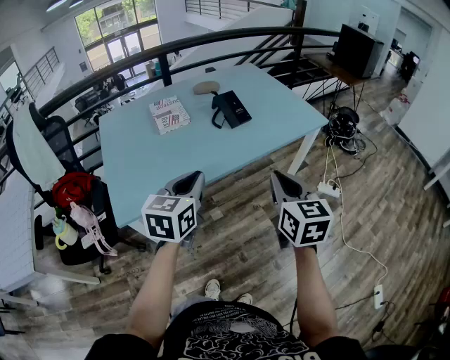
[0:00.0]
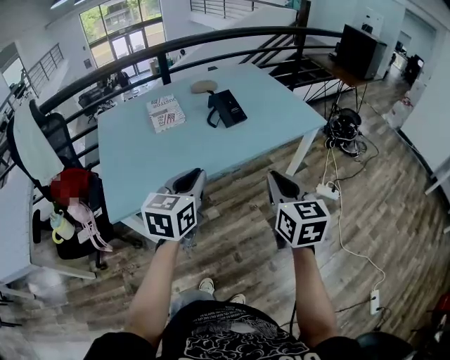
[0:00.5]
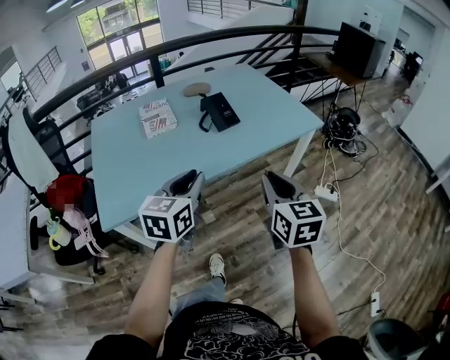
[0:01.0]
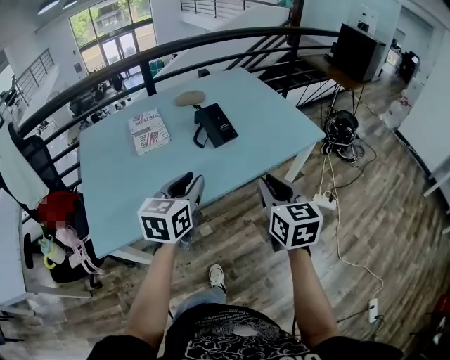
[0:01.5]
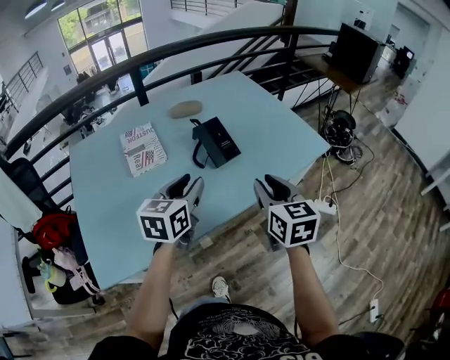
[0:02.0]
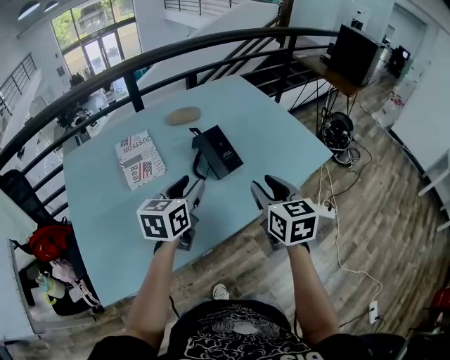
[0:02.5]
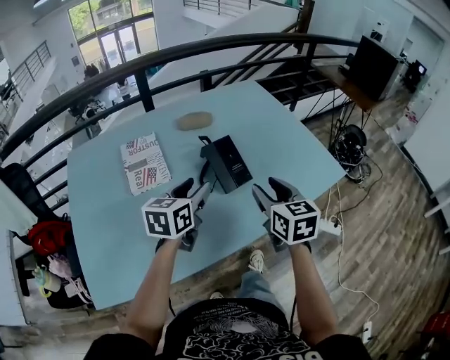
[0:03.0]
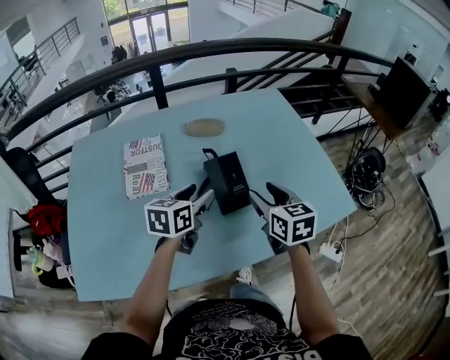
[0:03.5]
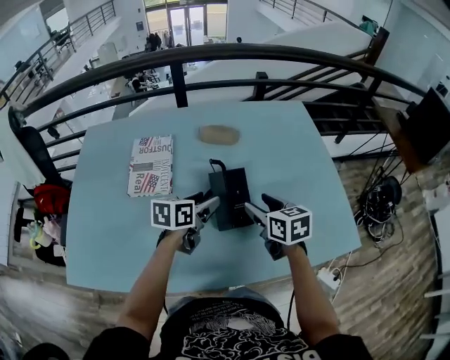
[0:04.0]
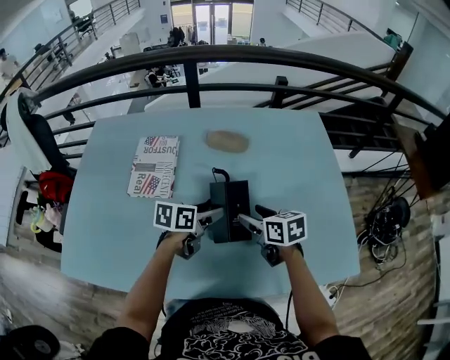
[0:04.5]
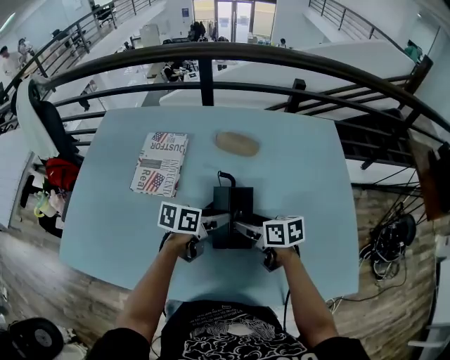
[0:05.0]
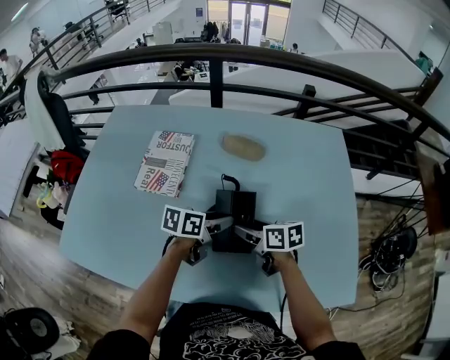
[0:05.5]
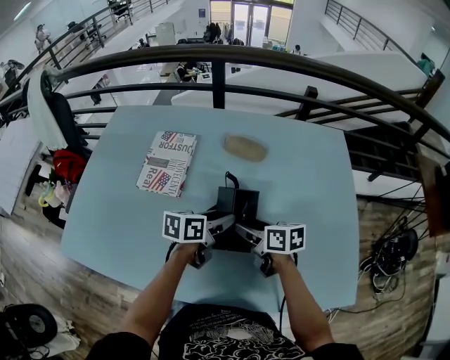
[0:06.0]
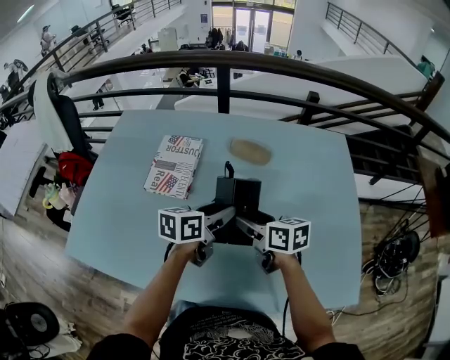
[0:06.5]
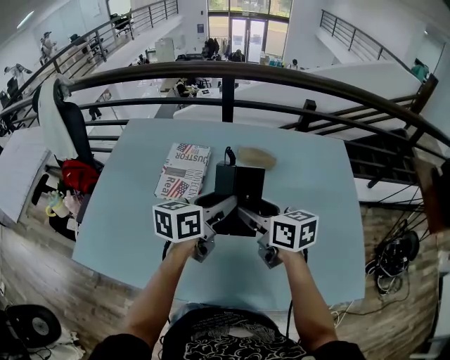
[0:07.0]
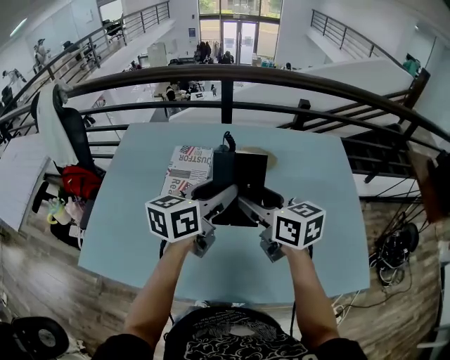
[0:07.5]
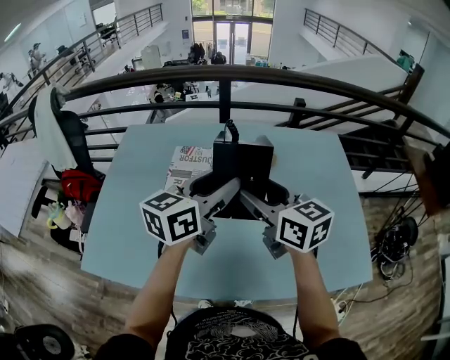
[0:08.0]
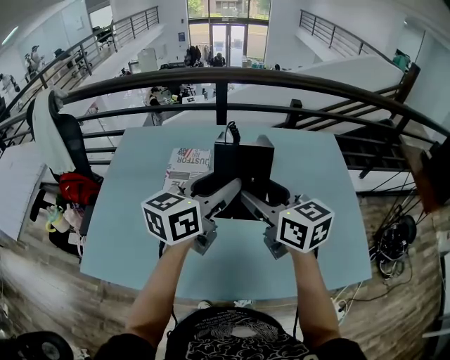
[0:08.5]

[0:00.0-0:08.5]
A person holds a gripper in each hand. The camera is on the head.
0:00.0 to 0:02.0: The grippers both shift forward by about 25 cm. The left gripper opens.
0:02.0 to 0:04.0: Both grippers move forward and downward, approximately 30 cm. The left gripper swivels about 30 degrees, and opens its fingers. Meanwhile the right gripper changes its angle by approximately 40 degrees, and opens up.
0:04.0 to 0:06.5: The right gripper moves to the left, some 5 cm, goes downward and returns, approximately 10 cm each way, and rotates roughly 30 degrees.
0:06.5 to 0:08.5: The grippers both shift upward by roughly 20 cm. The right gripper turns by approximately 30 degrees, while the left gripper rotates about 30 degrees.

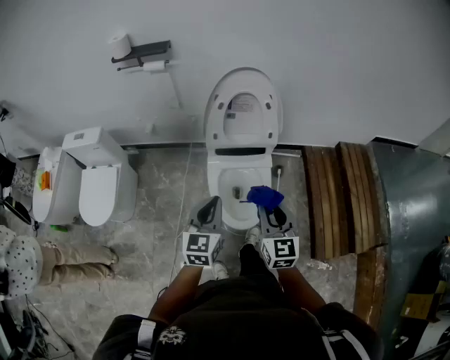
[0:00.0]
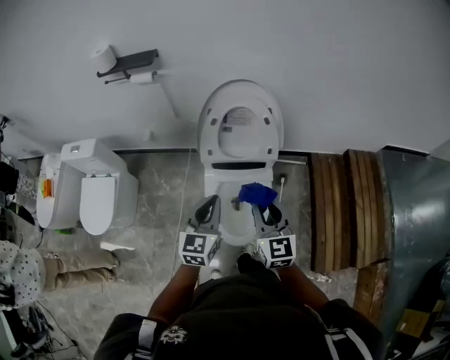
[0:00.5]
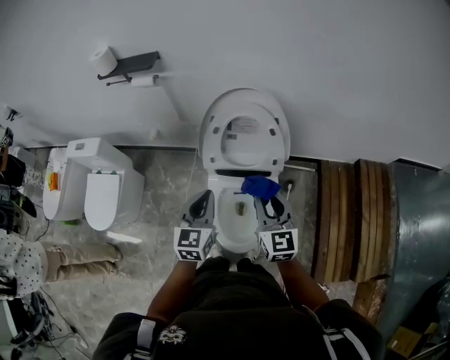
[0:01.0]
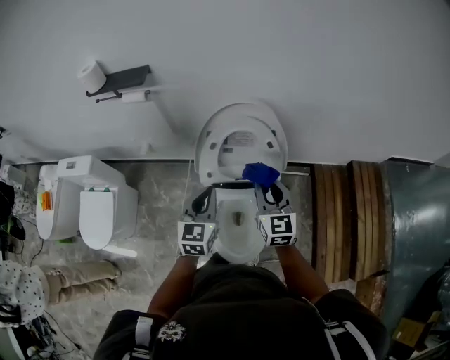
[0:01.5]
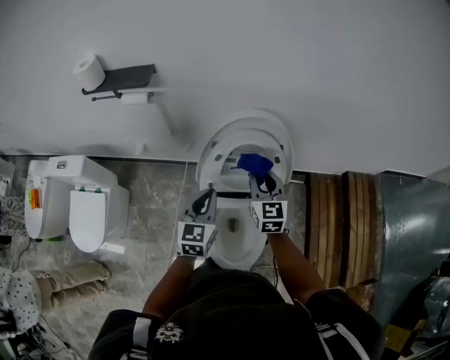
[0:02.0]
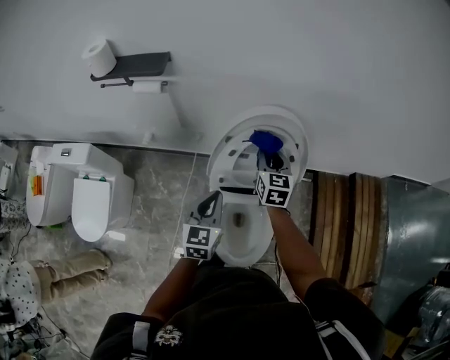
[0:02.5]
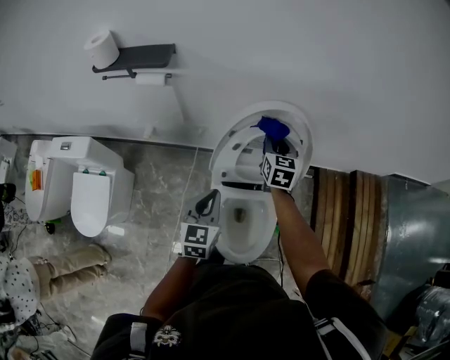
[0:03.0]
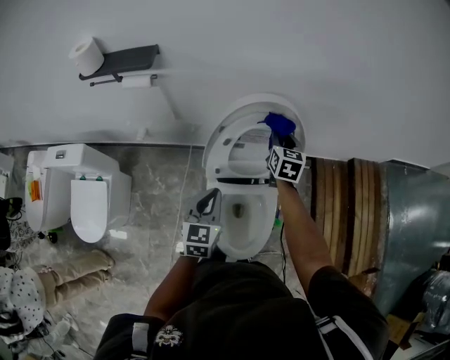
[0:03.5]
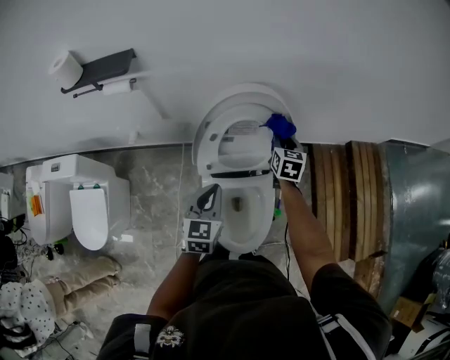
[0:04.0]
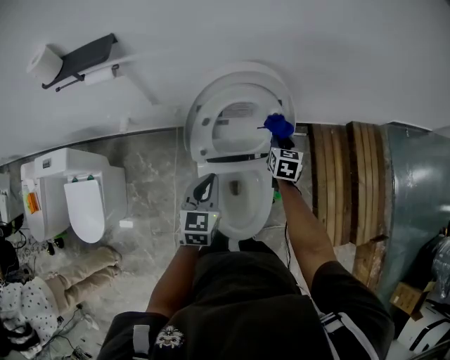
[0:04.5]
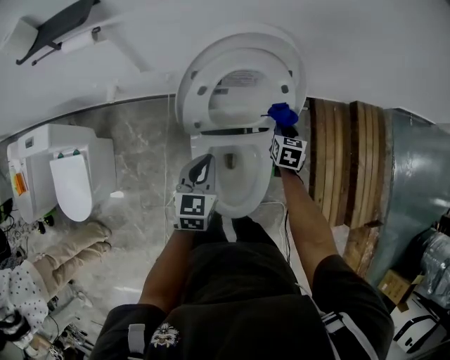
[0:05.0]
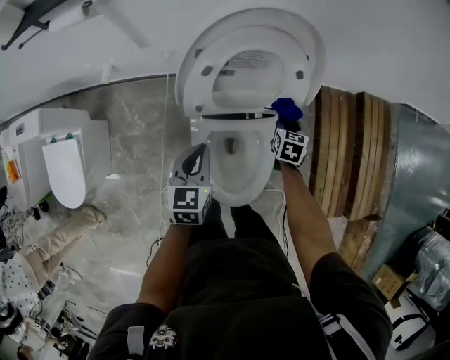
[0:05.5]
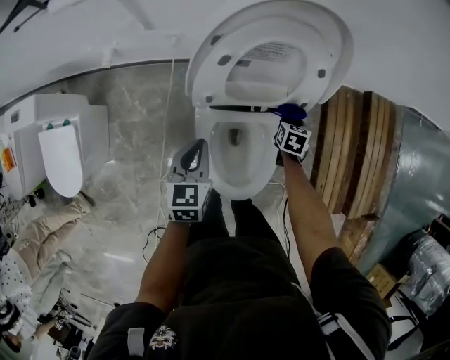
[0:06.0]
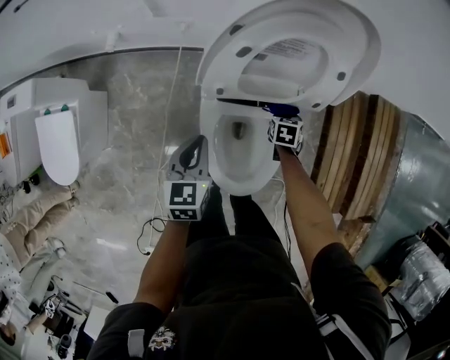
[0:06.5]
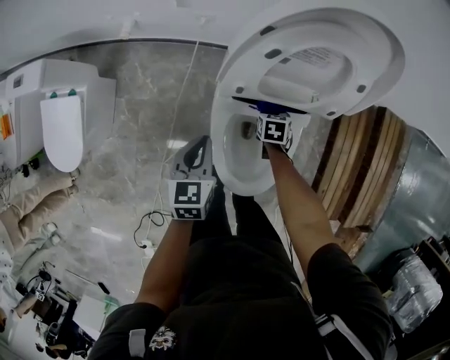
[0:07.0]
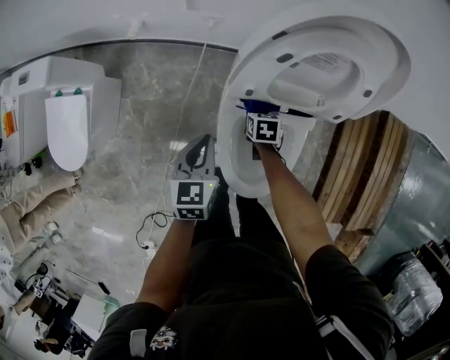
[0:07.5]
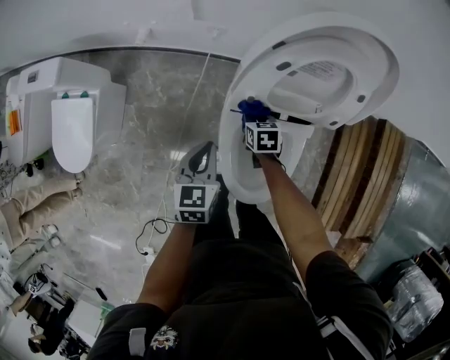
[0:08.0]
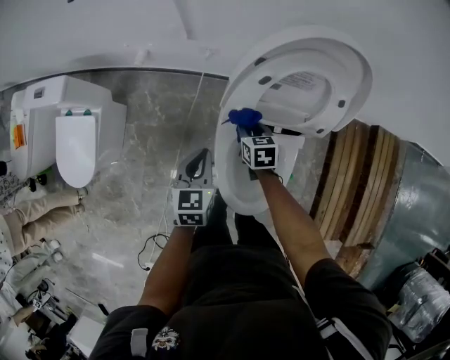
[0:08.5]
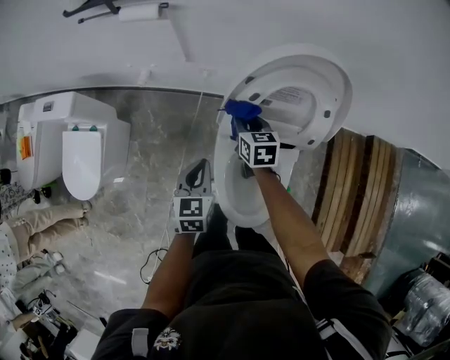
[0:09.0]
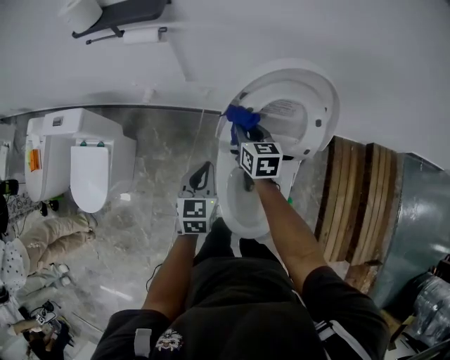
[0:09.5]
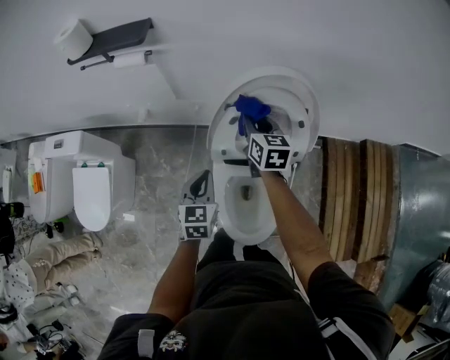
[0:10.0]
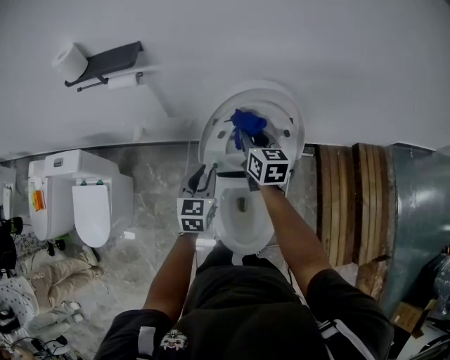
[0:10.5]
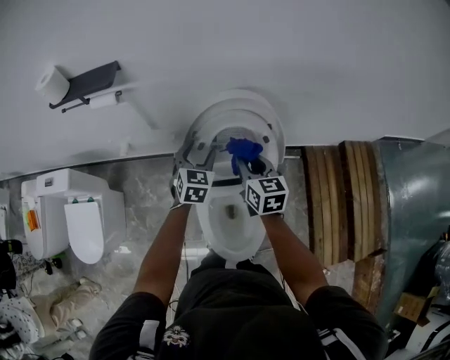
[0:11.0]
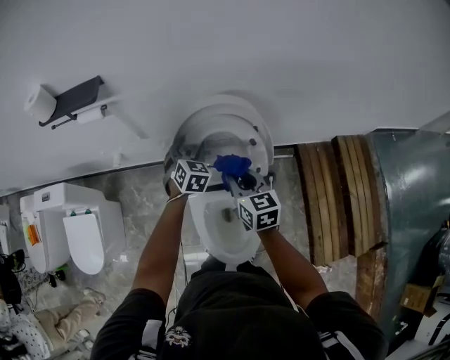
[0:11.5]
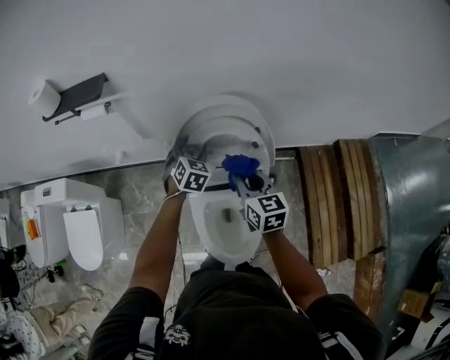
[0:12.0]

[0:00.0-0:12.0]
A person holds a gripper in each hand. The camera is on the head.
0:00.0 to 0:02.0: Both grippers travel together forward, some 35 cm.
0:02.0 to 0:04.0: The right gripper goes approximately 15 cm to the right, downward and forward, and rotates about 30 degrees; the left gripper moves approximately 5 cm.
0:04.0 to 0:06.0: The right gripper goes roughly 25 cm downward, and rotates some 30 degrees. Meanwhile the left gripper moves downward, about 15 cm.
0:06.0 to 0:08.0: The left gripper changes place by about 10 cm; the right gripper moves approximately 25 cm, and rotates roughly 30 degrees.
0:08.0 to 0:10.0: The left gripper heads upward and to the right, covering about 10 cm. Meanwhile the right gripper travels upward by roughly 30 cm, and tips its fingers upward by some 30 degrees.
0:10.0 to 0:12.0: The left gripper moves forward and to the right, some 20 cm, swivels some 30 degrees, and opens its fingers. Meanwhile the right gripper goes about 15 cm backward and to the right.

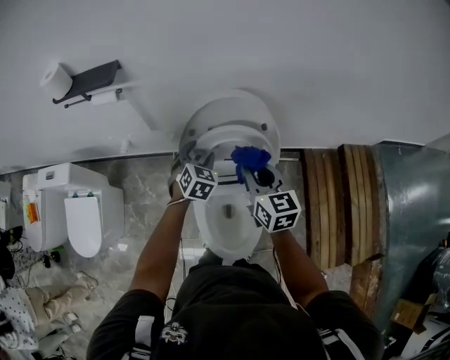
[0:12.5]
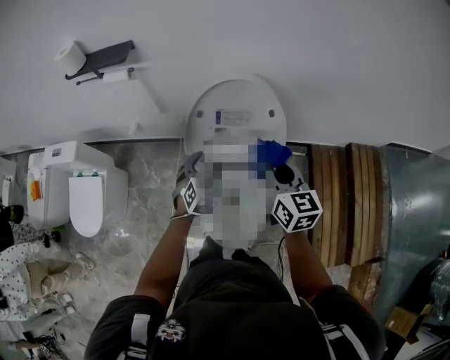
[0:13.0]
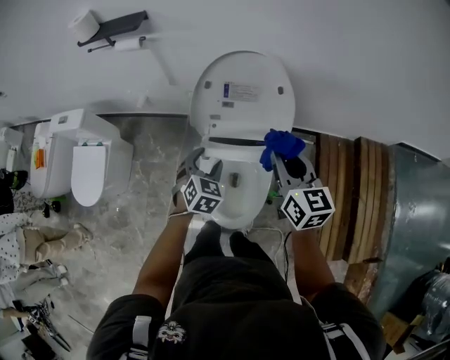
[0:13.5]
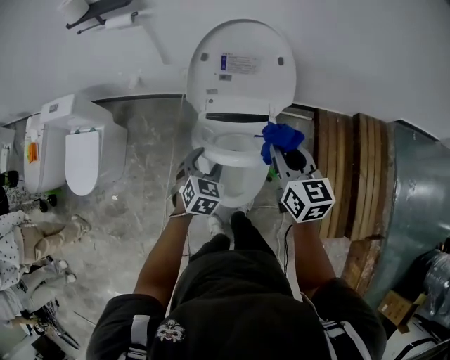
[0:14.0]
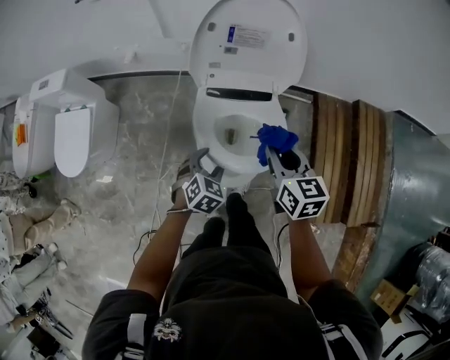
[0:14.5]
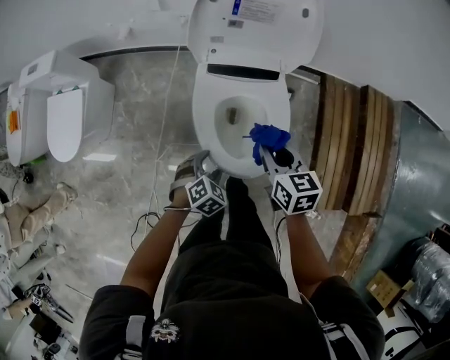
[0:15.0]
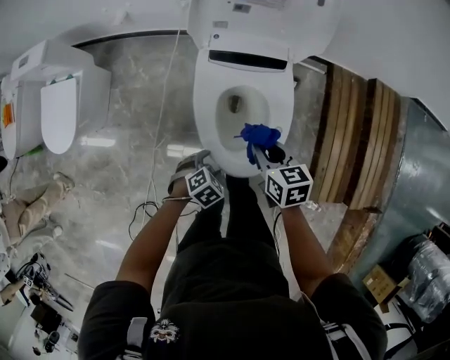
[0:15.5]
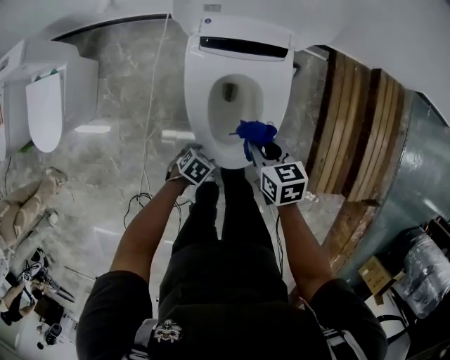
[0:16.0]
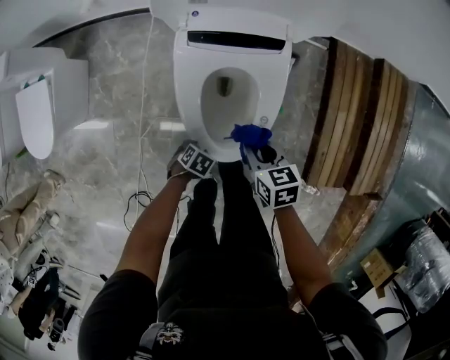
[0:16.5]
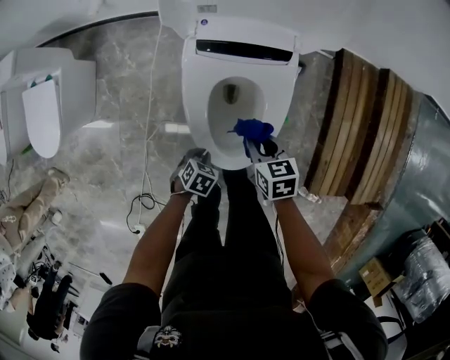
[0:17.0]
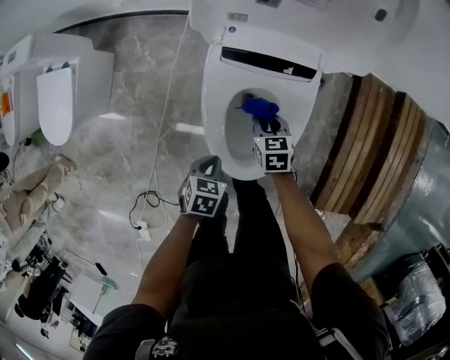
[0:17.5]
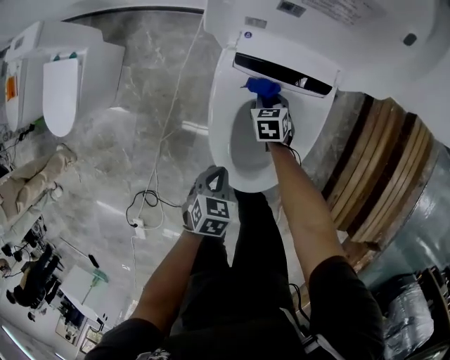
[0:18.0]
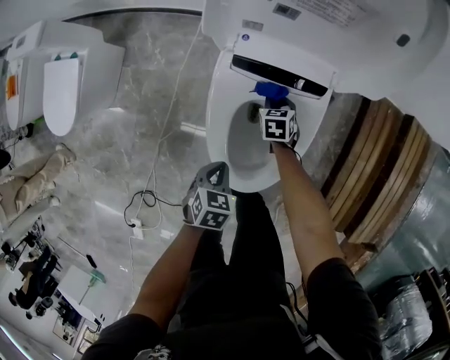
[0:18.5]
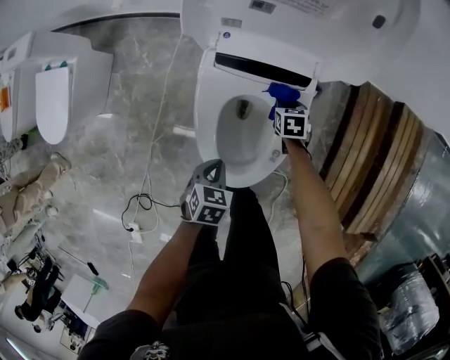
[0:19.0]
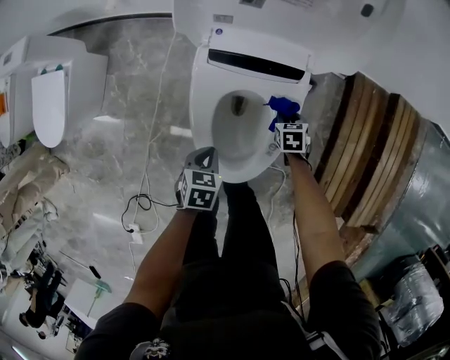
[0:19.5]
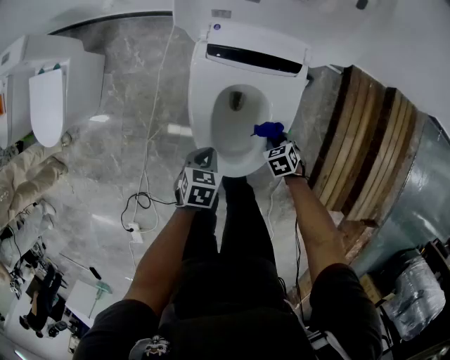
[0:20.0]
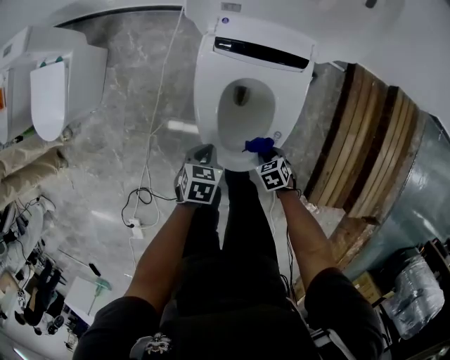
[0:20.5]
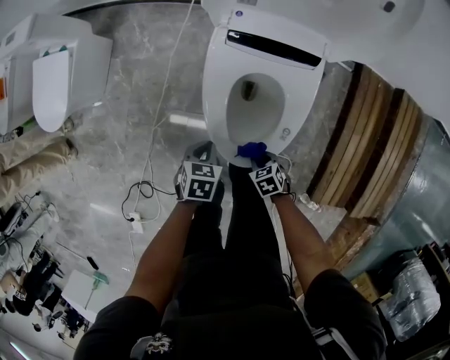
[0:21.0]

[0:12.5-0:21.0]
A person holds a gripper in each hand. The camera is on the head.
0:12.5 to 0:14.5: The right gripper travels backward by about 20 cm. Meanwhile the left gripper moves backward, some 35 cm.
0:14.5 to 0:16.5: Both grippers move downward, some 30 cm. The left gripper swivels approximately 40 degrees; the right gripper changes its angle by about 30 degrees.
0:16.5 to 0:19.0: The right gripper moves some 30 cm; the left gripper goes approximately 15 cm upward, turns by some 30 degrees, and closes its fingers.
0:19.0 to 0:21.0: The left gripper moves approximately 10 cm, while the right gripper shifts by some 30 cm, and rotates about 30 degrees.
